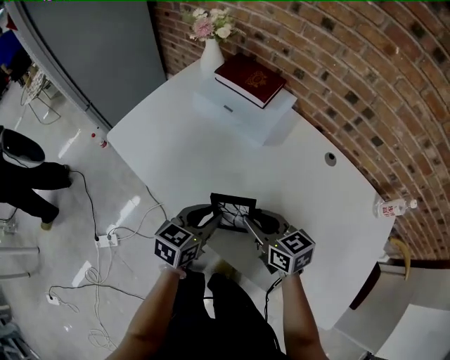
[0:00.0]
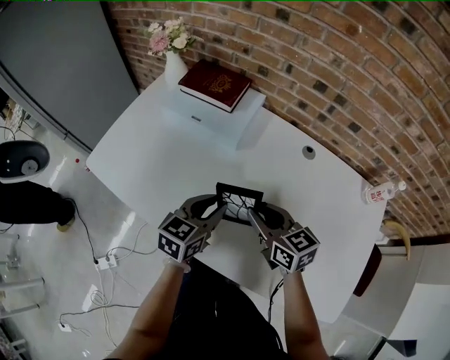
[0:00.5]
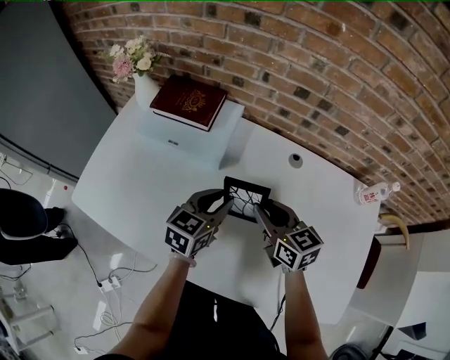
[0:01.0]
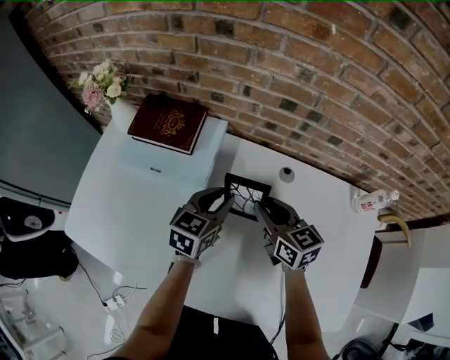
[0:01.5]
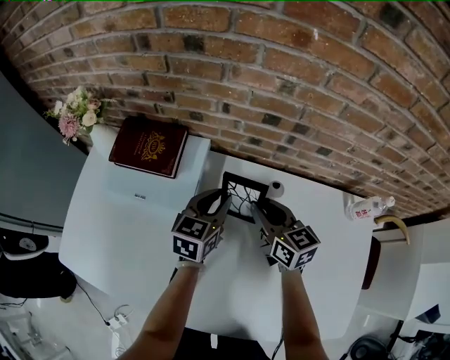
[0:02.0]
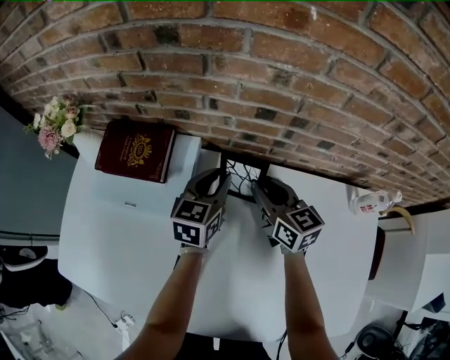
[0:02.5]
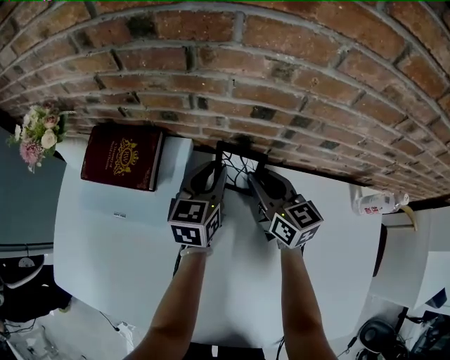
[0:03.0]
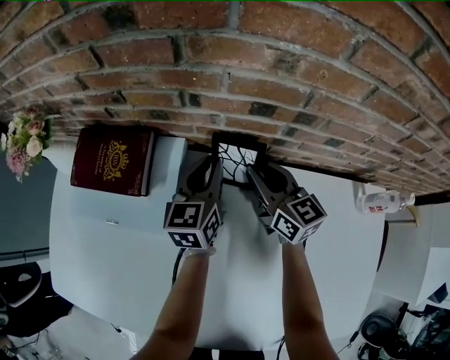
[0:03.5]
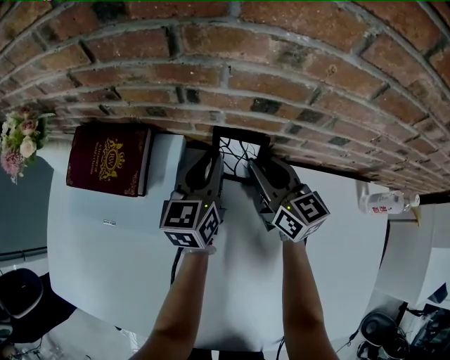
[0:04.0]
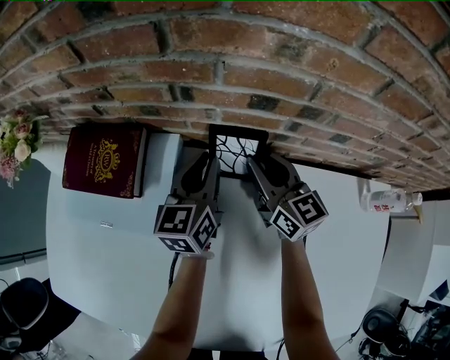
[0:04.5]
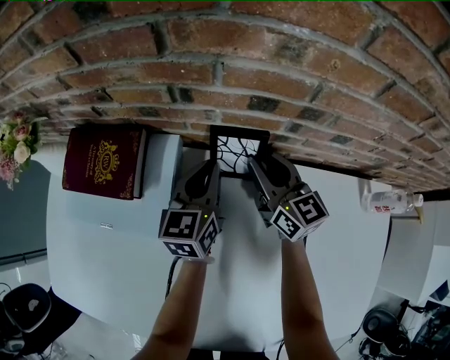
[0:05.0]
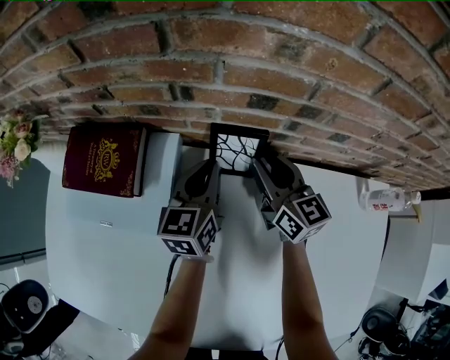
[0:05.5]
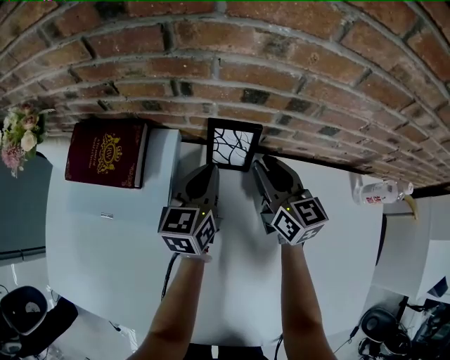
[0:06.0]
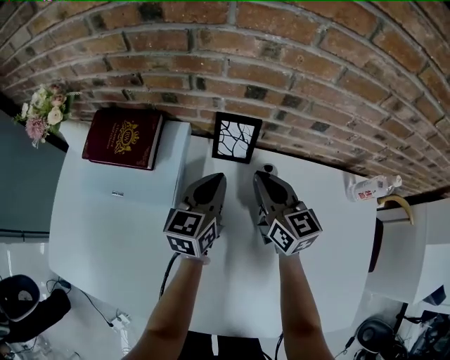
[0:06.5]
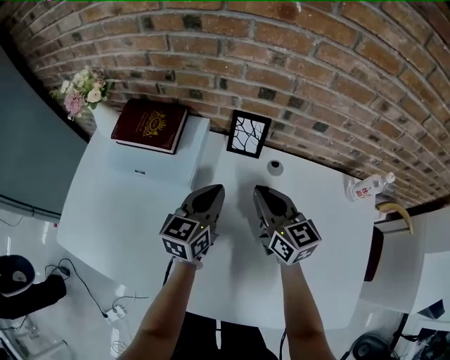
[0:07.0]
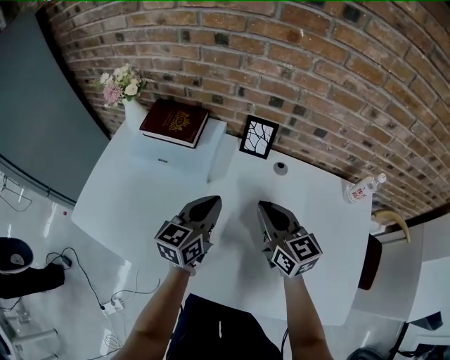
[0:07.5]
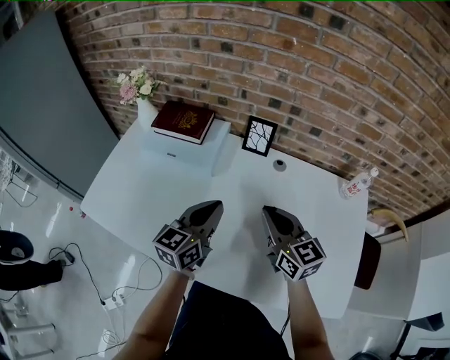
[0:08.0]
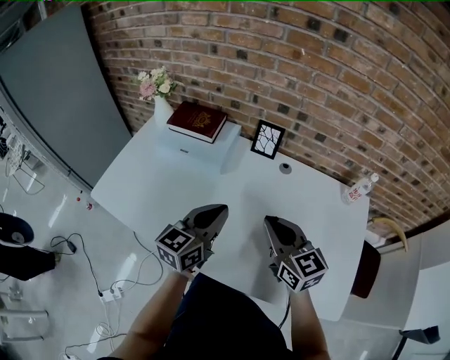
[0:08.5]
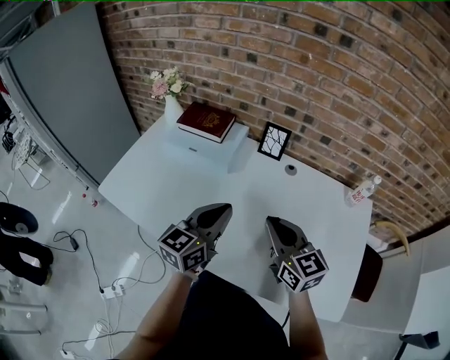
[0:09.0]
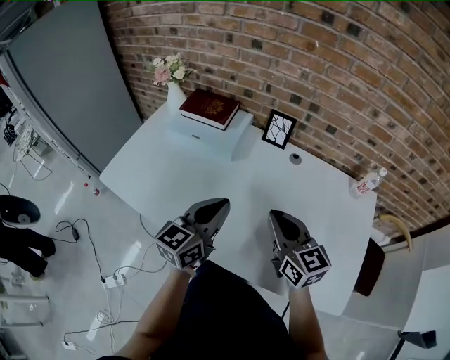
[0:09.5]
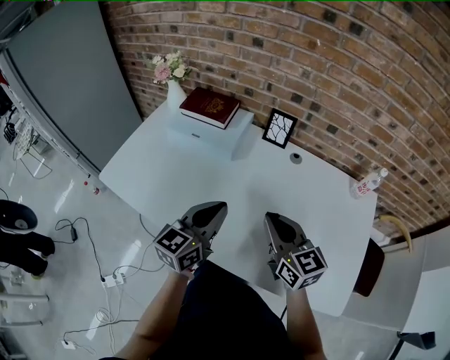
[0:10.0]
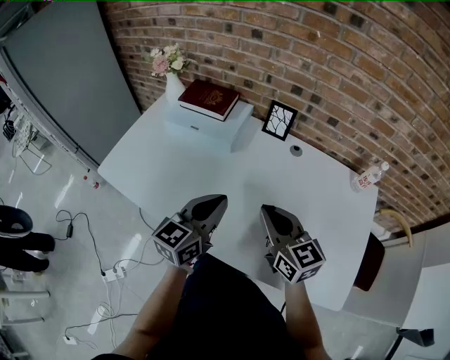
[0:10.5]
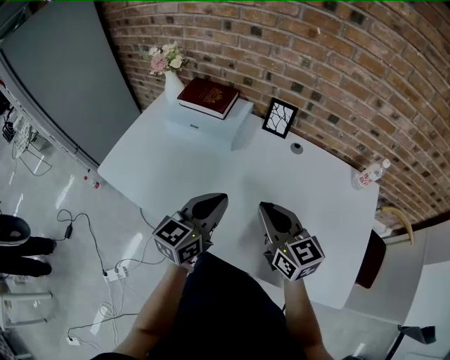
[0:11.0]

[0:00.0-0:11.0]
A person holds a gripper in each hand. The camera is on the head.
0:00.0 to 0:02.0: The two grippers go some 35 cm forward and to the right. The right gripper turns by about 40 degrees.
0:02.0 to 0:03.5: Both grippers travel together forward, about 10 cm.
0:03.5 to 0:05.5: The grippers stay close to where they were, moving slightly.
0:05.5 to 0:07.5: Both grippers travel together backward, about 25 cm. The right gripper closes.
0:07.5 to 0:09.0: Both grippers move backward and upward, roughly 15 cm.
0:09.0 to 0:11.0: There are only small adjustments of the grippers.

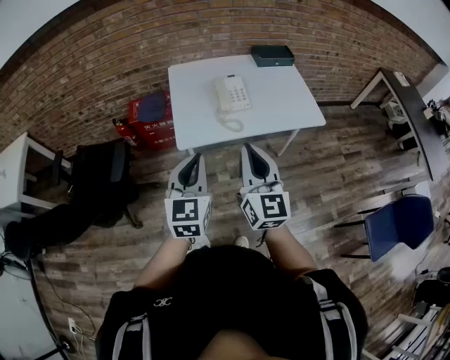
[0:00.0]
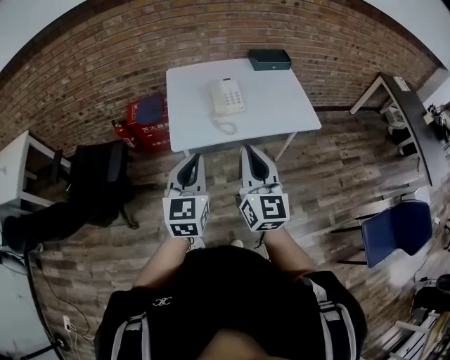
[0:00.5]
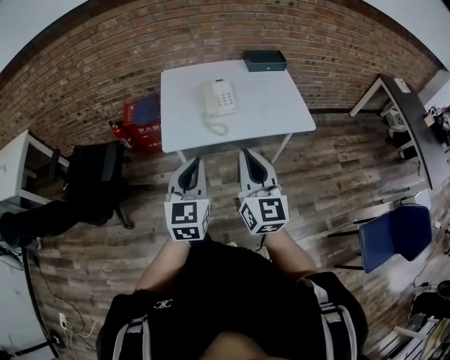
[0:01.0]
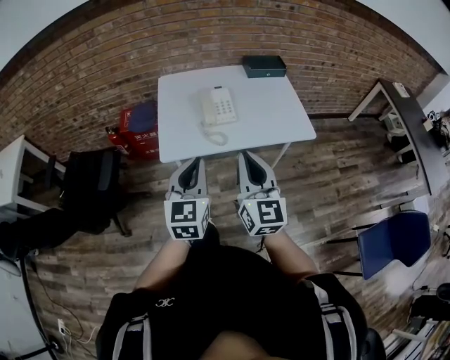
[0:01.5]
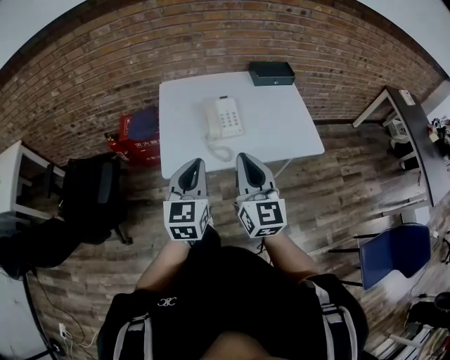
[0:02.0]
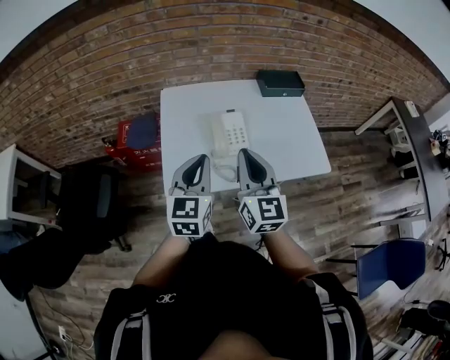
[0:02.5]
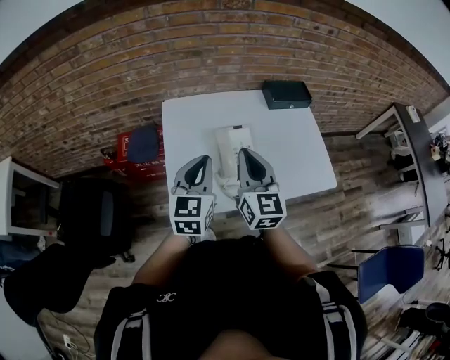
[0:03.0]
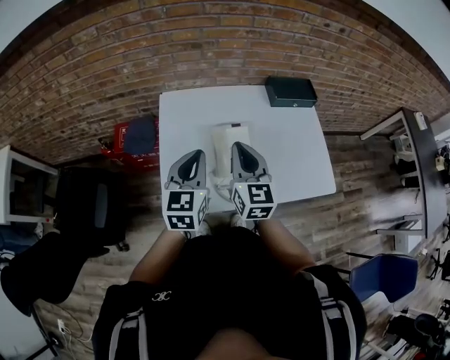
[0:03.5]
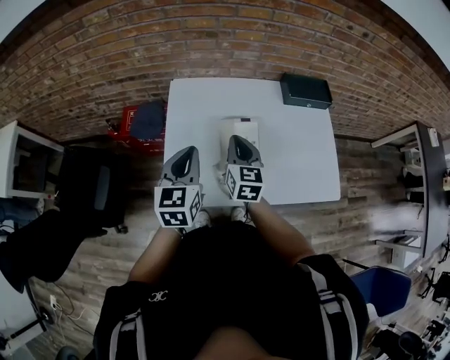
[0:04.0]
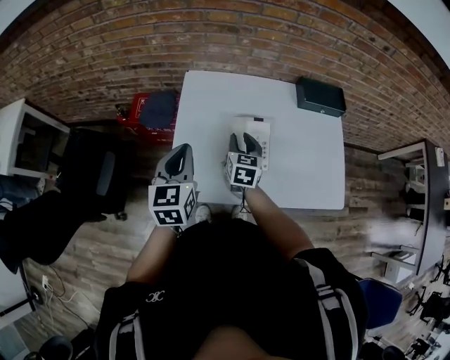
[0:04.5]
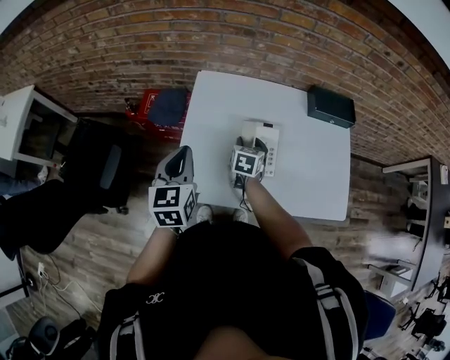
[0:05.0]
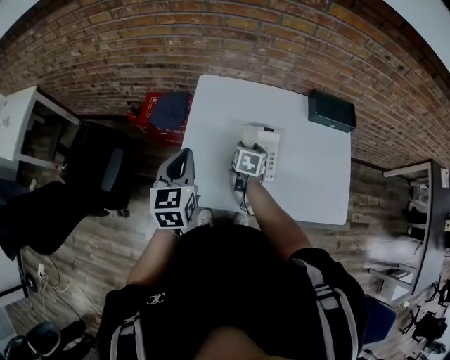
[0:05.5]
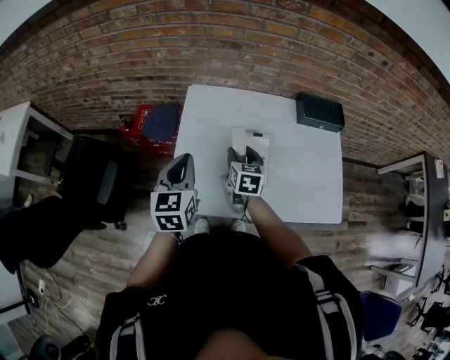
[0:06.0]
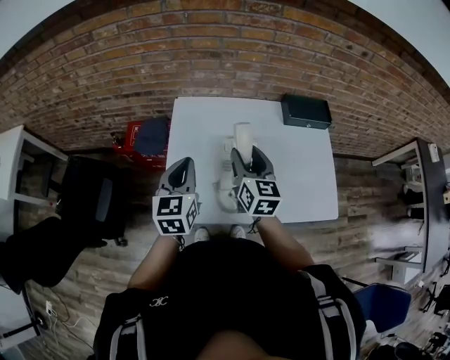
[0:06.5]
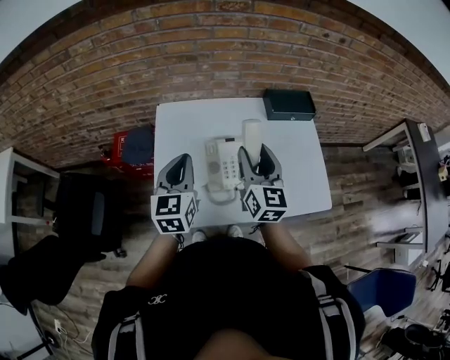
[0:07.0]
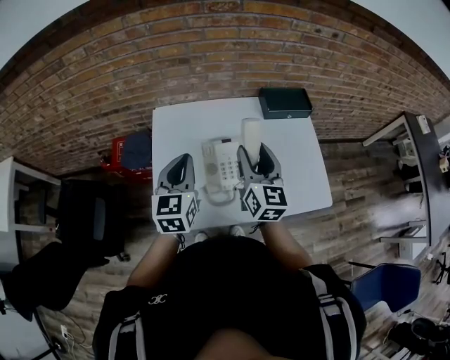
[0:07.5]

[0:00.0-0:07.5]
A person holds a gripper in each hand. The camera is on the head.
0:00.0 to 0:02.0: Both grippers move forward and to the right, about 15 cm.
0:02.0 to 0:04.0: The right gripper travels forward and downward by approximately 35 cm, and swivels about 20 degrees. Meanwhile the left gripper is displaced forward by approximately 25 cm.
0:04.0 to 0:05.5: The left gripper heads to the left, covering roughly 5 cm. The right gripper shifts approximately 15 cm downward, turns by roughly 30 degrees, and opens.
0:05.5 to 0:07.5: The right gripper moves upward and to the right, approximately 25 cm, and points its fingers roughly 40 degrees further upward. The left gripper travels to the right by roughly 10 cm.

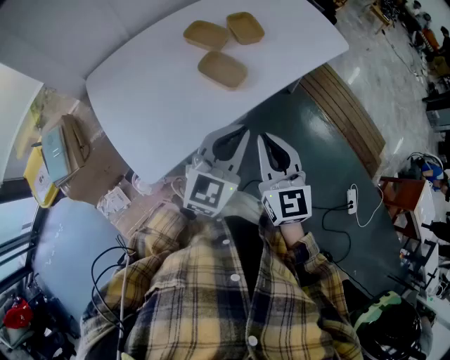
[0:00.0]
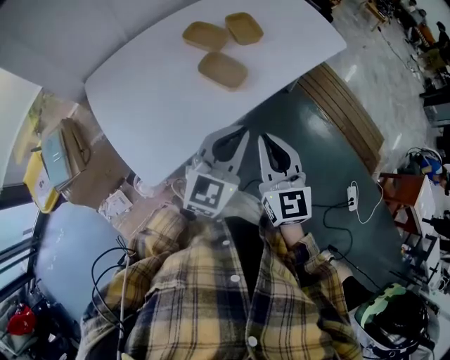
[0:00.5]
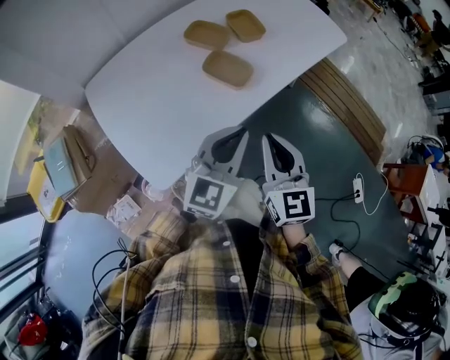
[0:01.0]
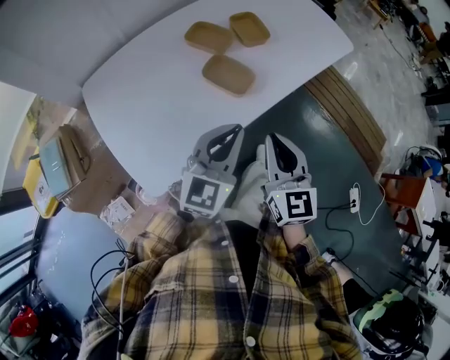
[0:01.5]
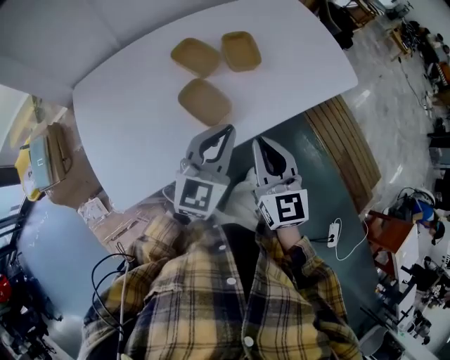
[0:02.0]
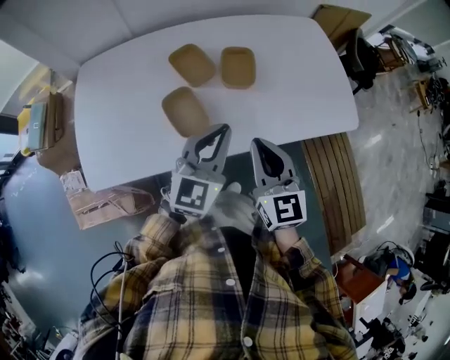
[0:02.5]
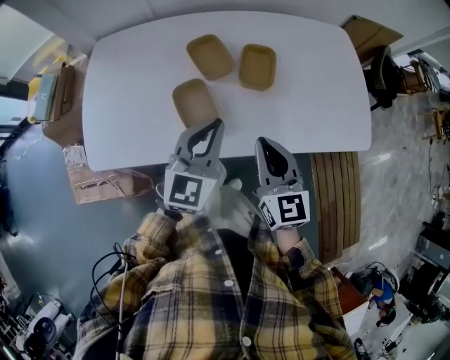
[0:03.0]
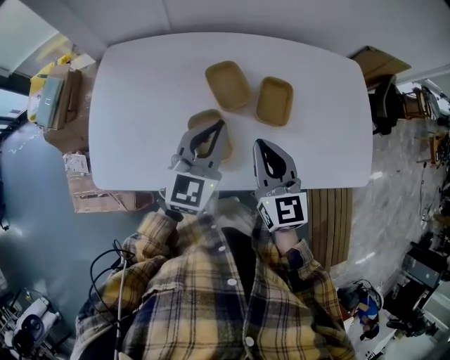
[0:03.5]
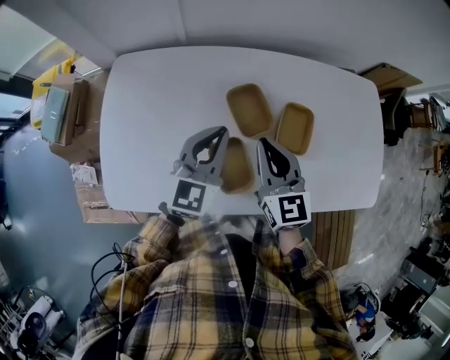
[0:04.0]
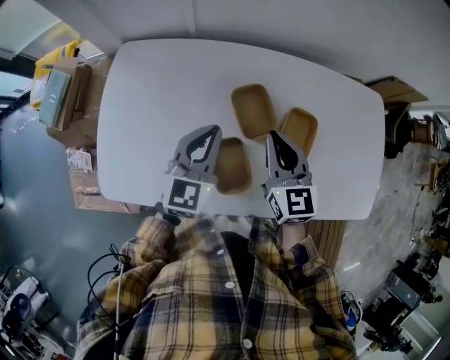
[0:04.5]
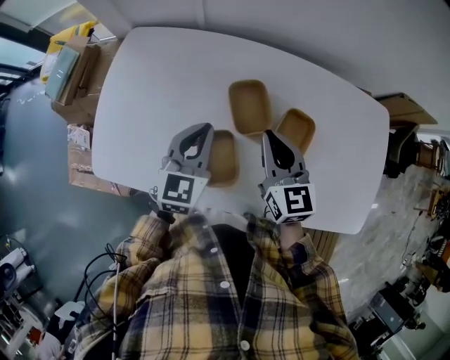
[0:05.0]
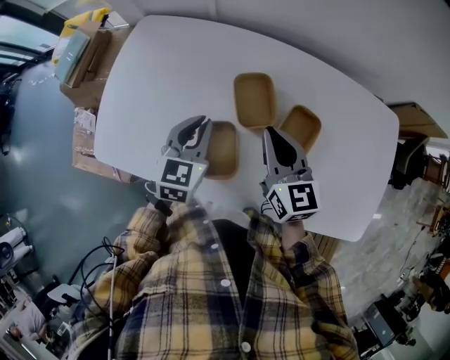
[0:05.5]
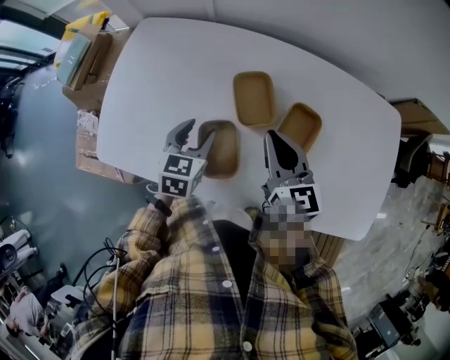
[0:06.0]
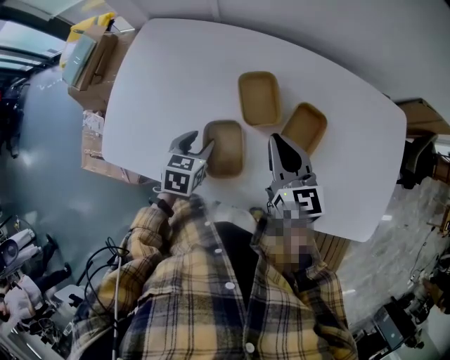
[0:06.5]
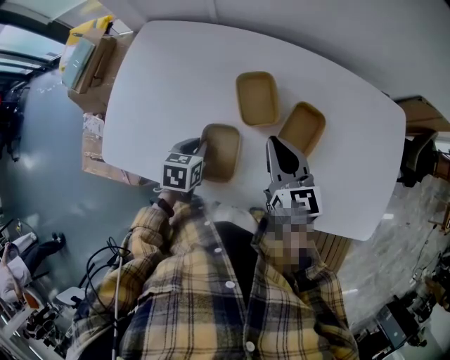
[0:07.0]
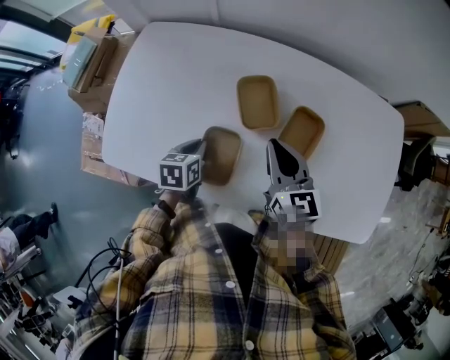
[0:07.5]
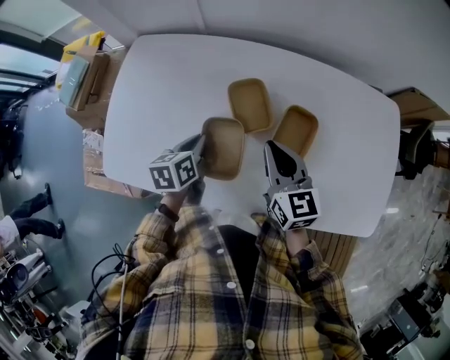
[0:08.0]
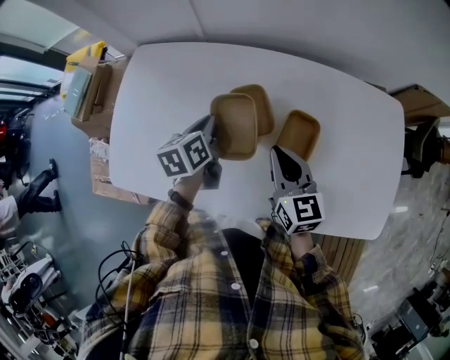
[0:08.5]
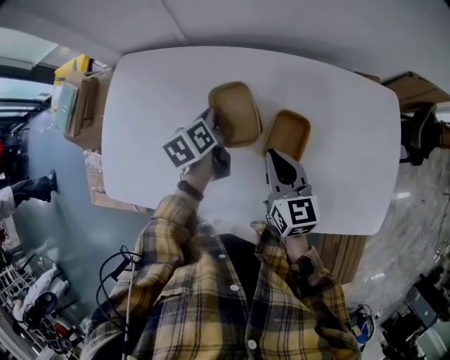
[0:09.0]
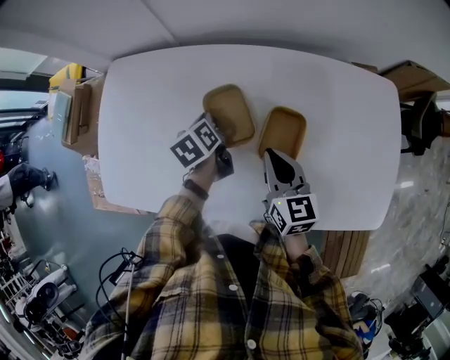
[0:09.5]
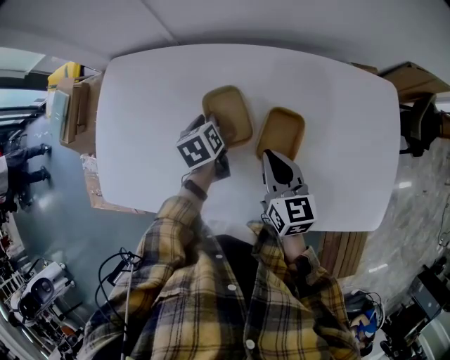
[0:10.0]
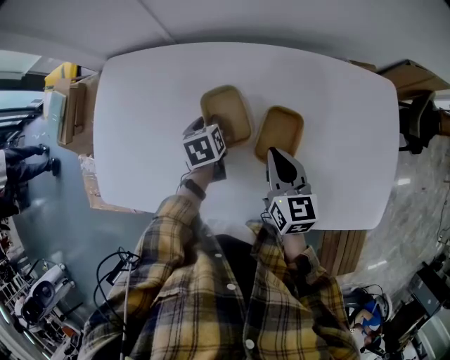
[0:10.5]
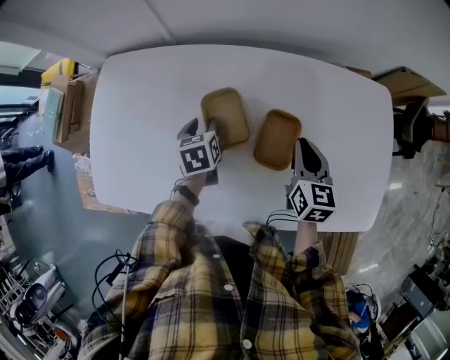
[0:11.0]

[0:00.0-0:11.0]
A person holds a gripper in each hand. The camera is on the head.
0:00.0 to 0:02.0: The two grippers go roughly 15 cm forward.
0:02.0 to 0:03.5: The right gripper changes place by approximately 20 cm, and swivels some 30 degrees, while the left gripper moves some 15 cm, and swivels some 30 degrees.
0:03.5 to 0:05.5: The right gripper heads forward, covering approximately 10 cm. The left gripper shifts roughly 15 cm downward, to the left and forward, and changes its angle by approximately 30 degrees.
0:05.5 to 0:07.5: The left gripper goes approximately 10 cm downward, rotates approximately 30 degrees, and opens and closes again.
0:07.5 to 0:09.0: The left gripper is displaced forward and to the right by some 15 cm, and swivels approximately 20 degrees. The right gripper ends up approximately 5 cm from where it was.
0:09.0 to 0:11.0: The right gripper travels to the right by about 10 cm; the left gripper heads downward, covering some 5 cm, changes its angle by some 20 degrees, and opens its fingers.